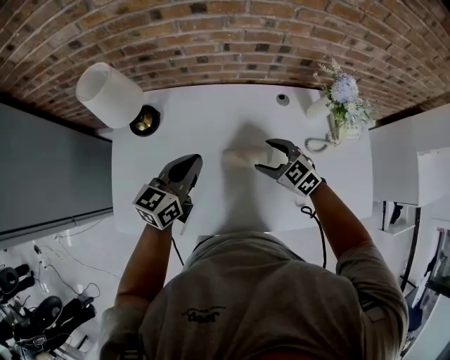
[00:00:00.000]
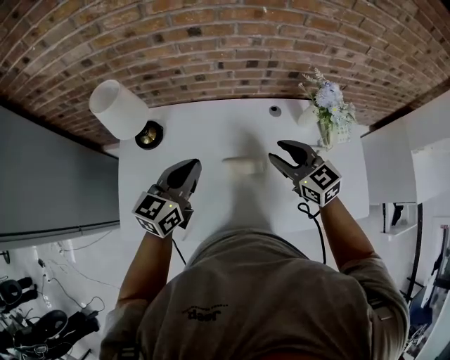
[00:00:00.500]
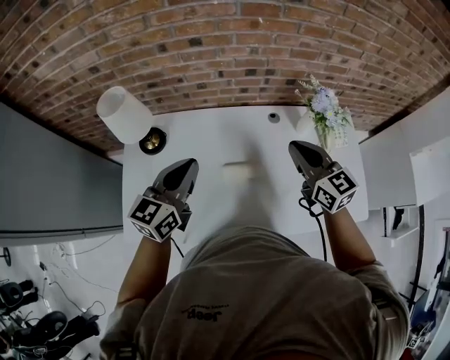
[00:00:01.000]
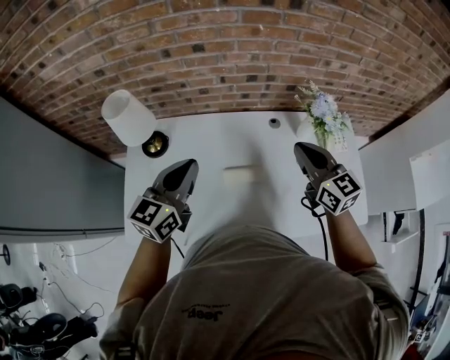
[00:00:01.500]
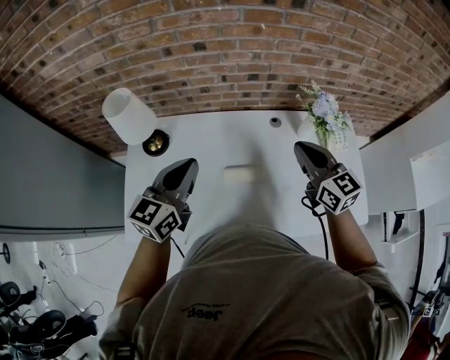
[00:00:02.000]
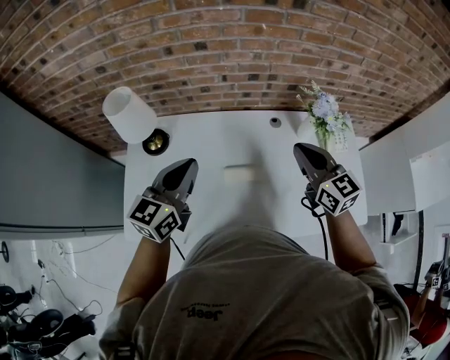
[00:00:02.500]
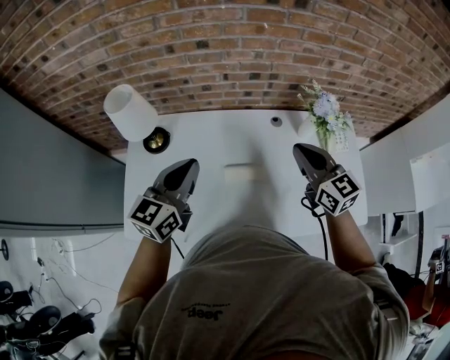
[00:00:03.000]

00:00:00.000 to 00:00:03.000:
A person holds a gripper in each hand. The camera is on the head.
00:00:00.000 to 00:00:01.500: The right gripper moves upward, roughly 25 cm, points its fingers some 30 degrees further upward, and closes; the left gripper heads upward, covering about 15 cm.
00:00:01.500 to 00:00:03.000: Neither gripper changes place.

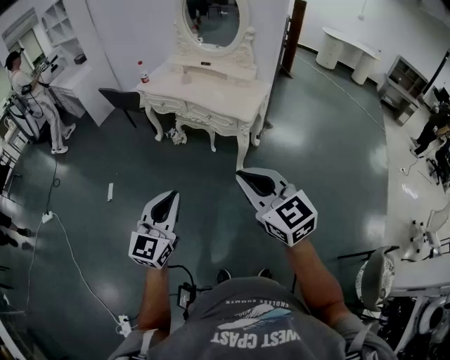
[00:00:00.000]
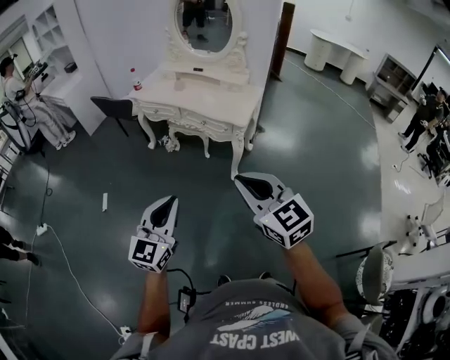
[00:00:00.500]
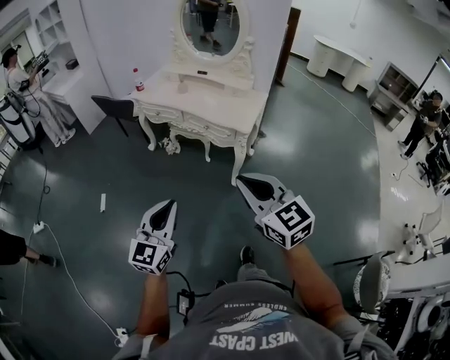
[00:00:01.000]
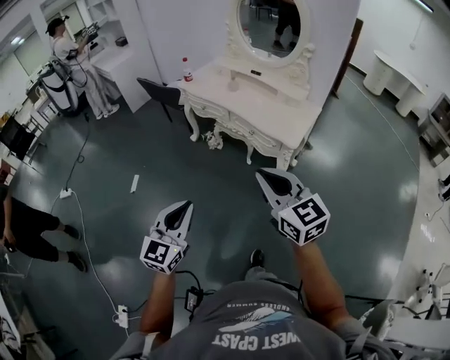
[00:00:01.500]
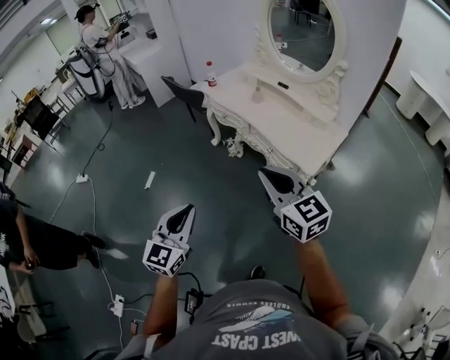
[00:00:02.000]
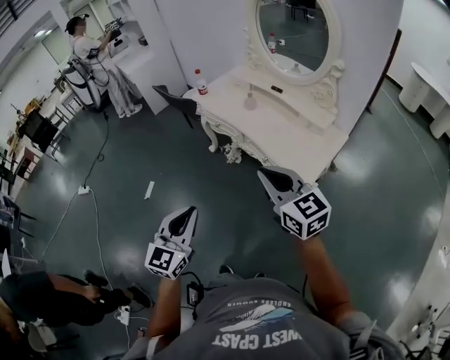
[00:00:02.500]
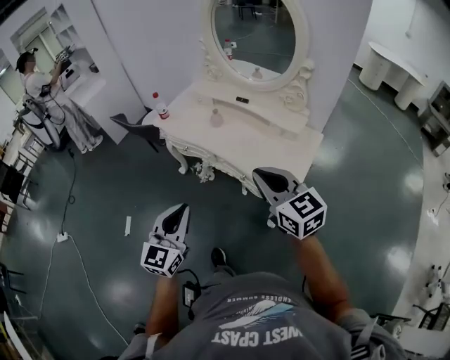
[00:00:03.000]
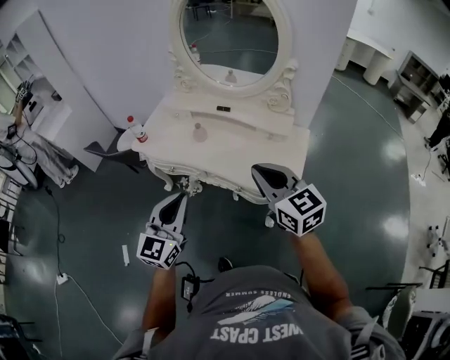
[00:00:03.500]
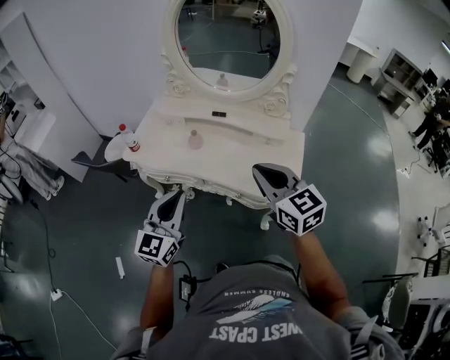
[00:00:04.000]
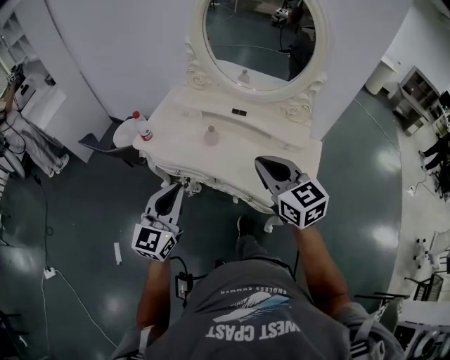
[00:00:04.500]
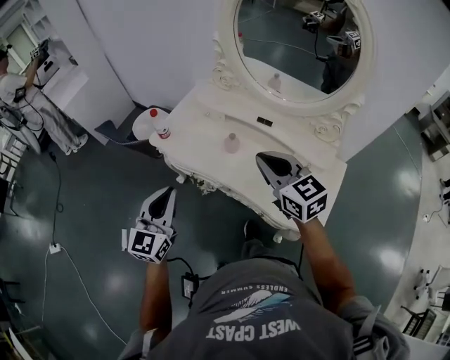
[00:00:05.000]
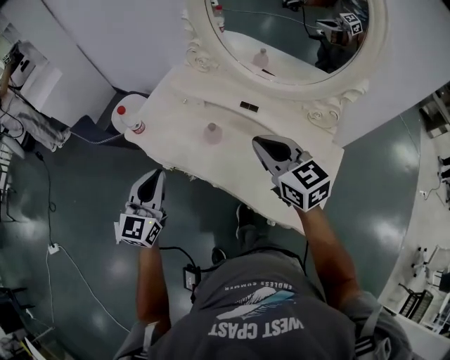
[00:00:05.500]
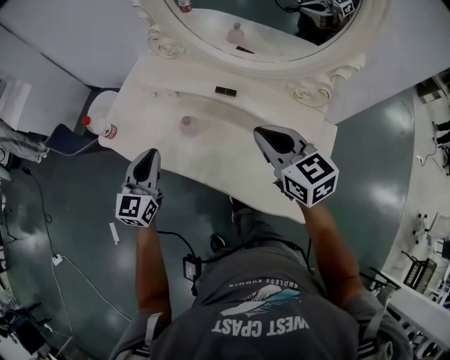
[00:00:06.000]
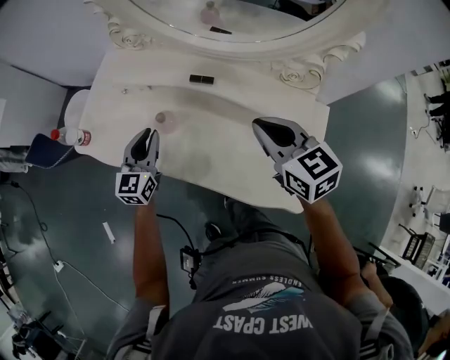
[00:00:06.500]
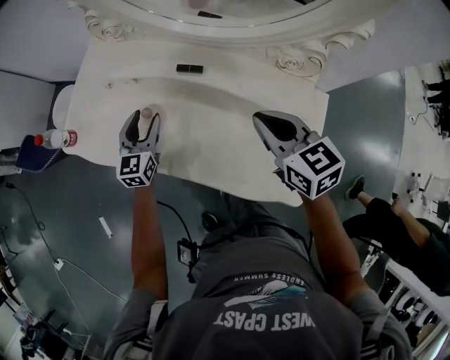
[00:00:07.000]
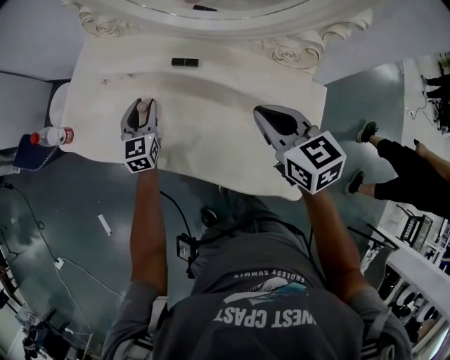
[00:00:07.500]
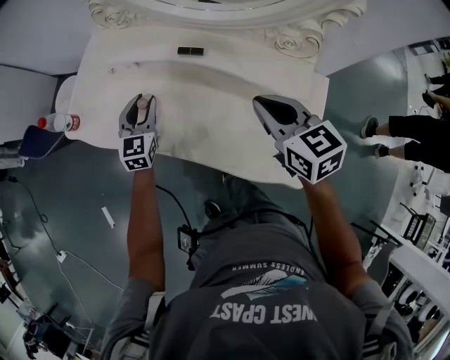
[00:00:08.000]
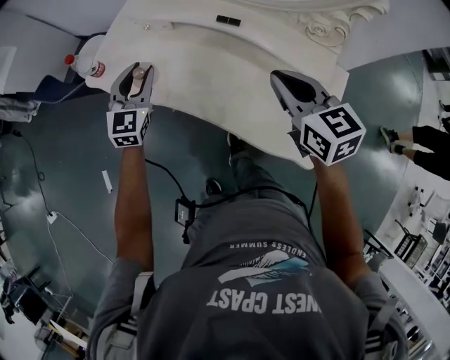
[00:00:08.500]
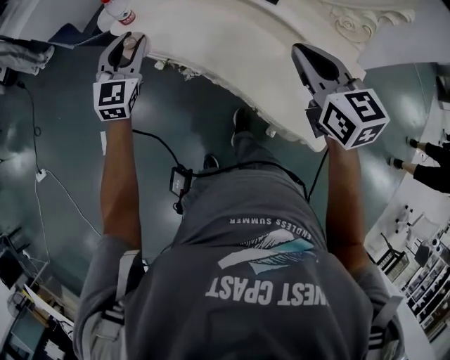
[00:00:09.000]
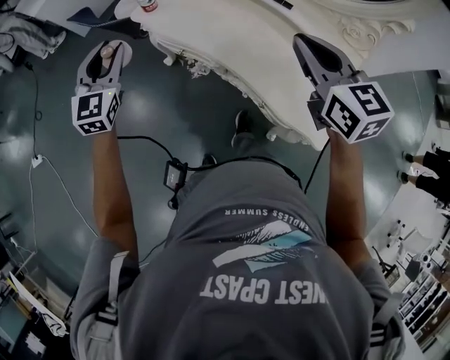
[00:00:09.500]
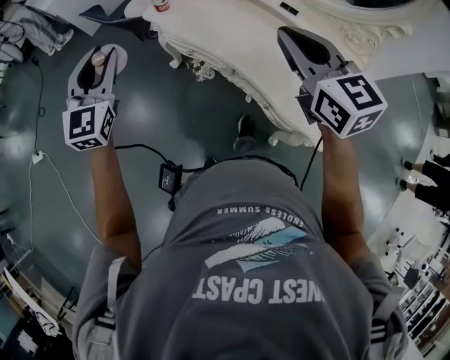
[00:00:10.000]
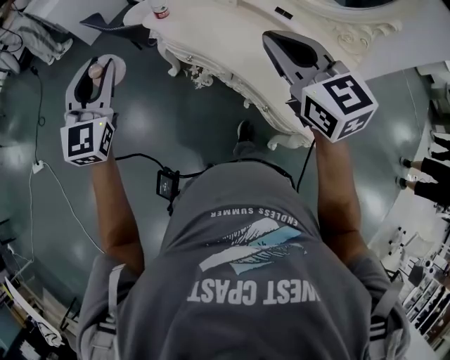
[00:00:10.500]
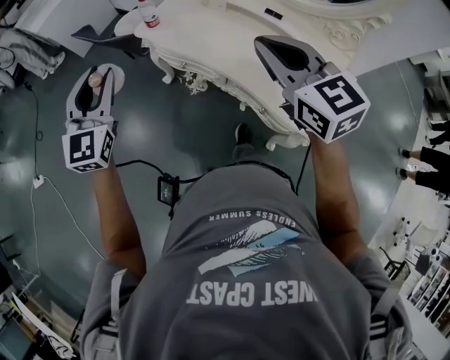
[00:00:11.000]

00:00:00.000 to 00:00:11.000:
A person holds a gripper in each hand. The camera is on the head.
00:00:00.000 to 00:00:02.000: The left gripper heads forward, covering about 20 cm, and swivels about 20 degrees. Meanwhile the right gripper heads forward, covering about 30 cm.
00:00:02.000 to 00:00:03.500: The left gripper moves roughly 40 cm, and turns by roughly 30 degrees. Meanwhile the right gripper shifts by about 30 cm, and changes its angle by approximately 30 degrees.
00:00:03.500 to 00:00:05.500: Both grippers move forward, some 25 cm.
00:00:05.500 to 00:00:07.500: The right gripper heads to the right and downward, covering some 20 cm, and rotates about 20 degrees. Meanwhile the left gripper heads downward, forward and to the right, covering about 35 cm, and opens.
00:00:07.500 to 00:00:09.000: The right gripper is displaced to the left, upward and backward by some 15 cm. Meanwhile the left gripper travels to the left, upward and backward by roughly 30 cm.
00:00:09.000 to 00:00:11.000: The right gripper heads to the left and upward, covering some 20 cm, while the left gripper heads to the left, backward and upward, covering roughly 25 cm.

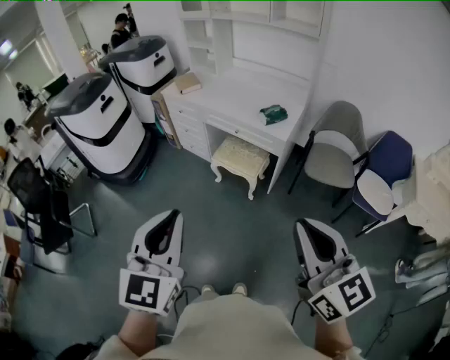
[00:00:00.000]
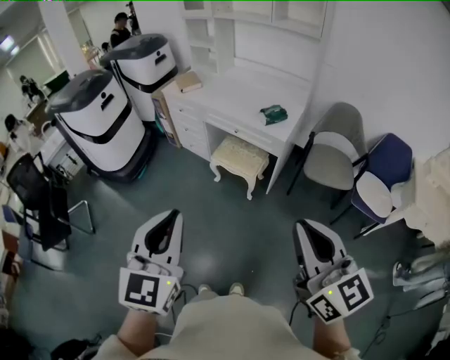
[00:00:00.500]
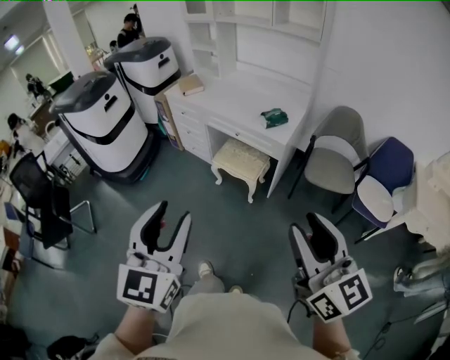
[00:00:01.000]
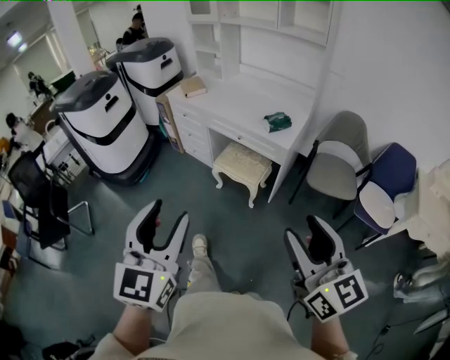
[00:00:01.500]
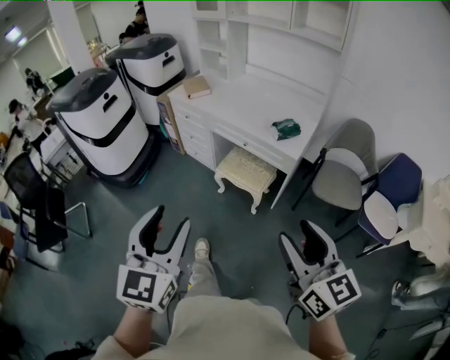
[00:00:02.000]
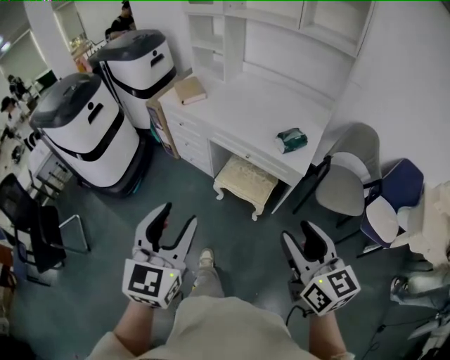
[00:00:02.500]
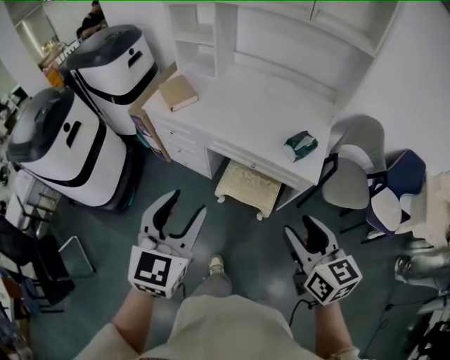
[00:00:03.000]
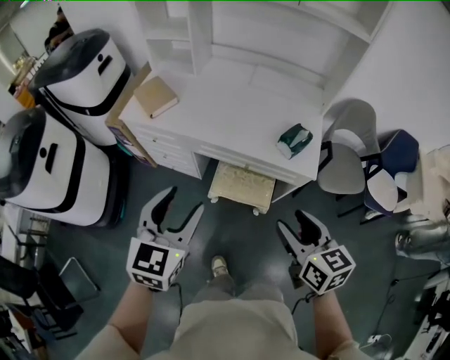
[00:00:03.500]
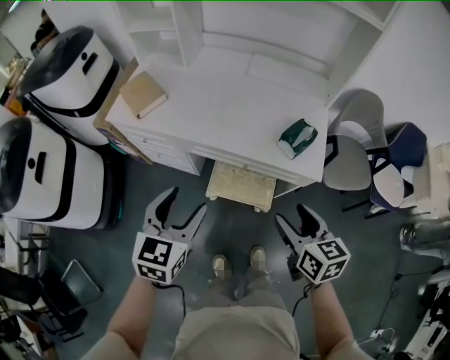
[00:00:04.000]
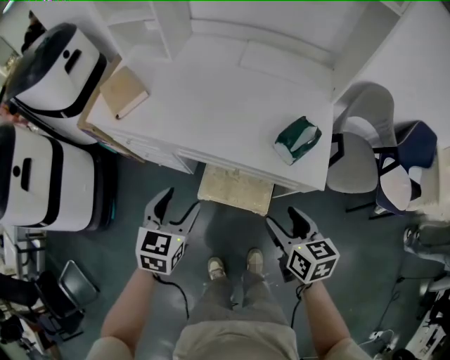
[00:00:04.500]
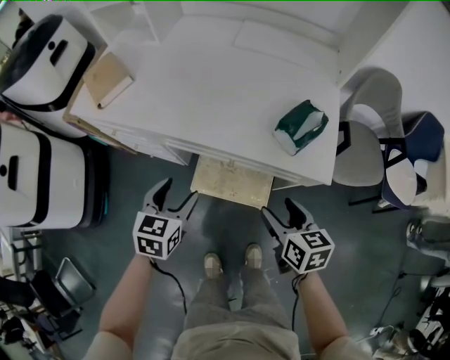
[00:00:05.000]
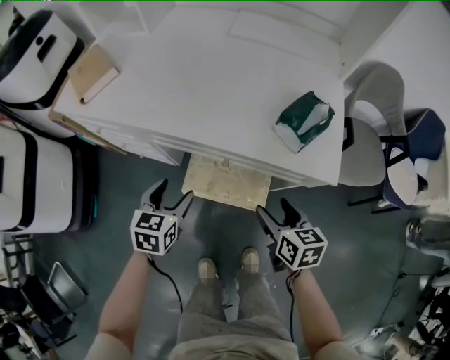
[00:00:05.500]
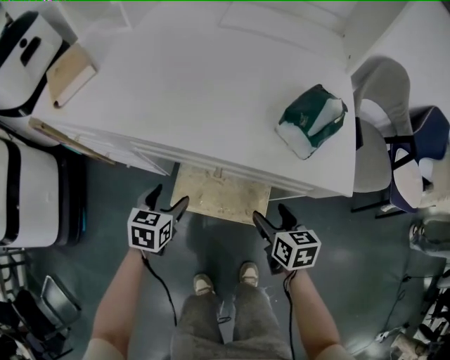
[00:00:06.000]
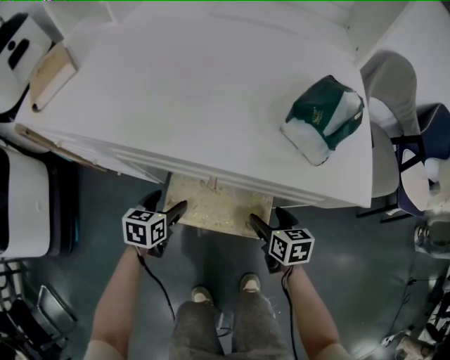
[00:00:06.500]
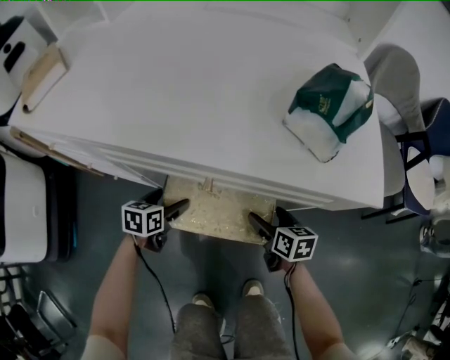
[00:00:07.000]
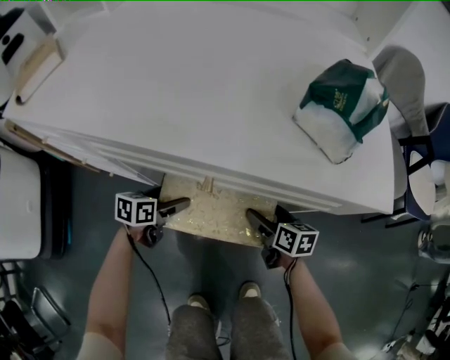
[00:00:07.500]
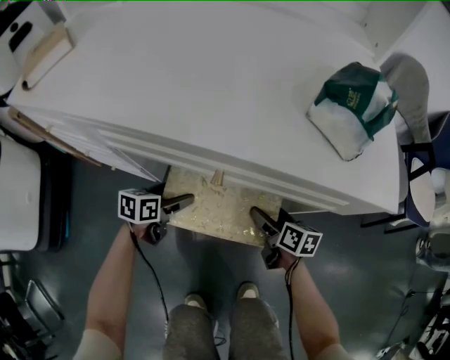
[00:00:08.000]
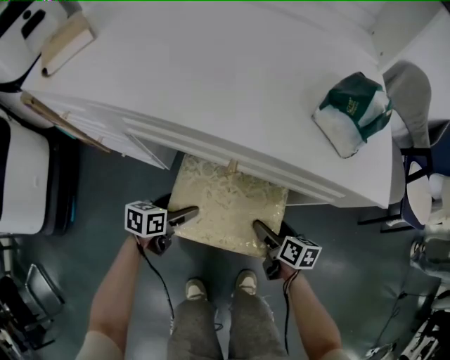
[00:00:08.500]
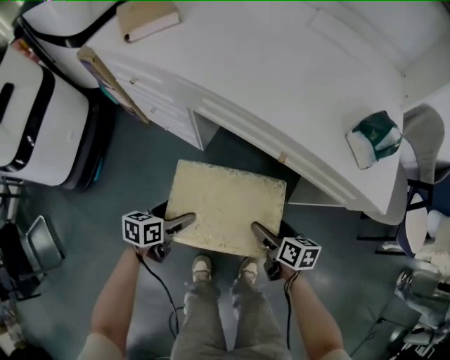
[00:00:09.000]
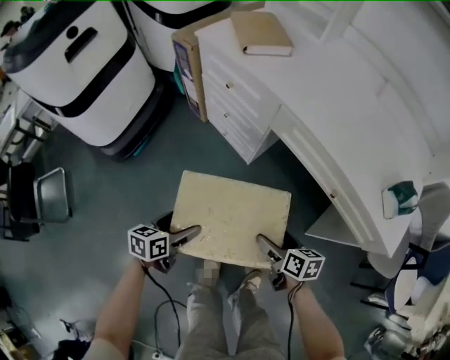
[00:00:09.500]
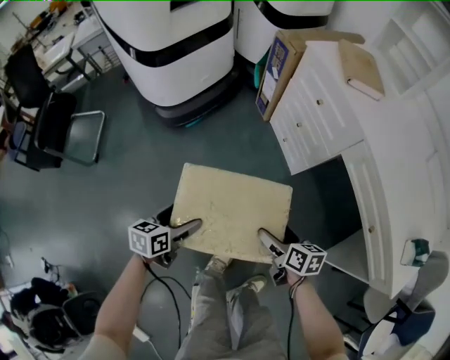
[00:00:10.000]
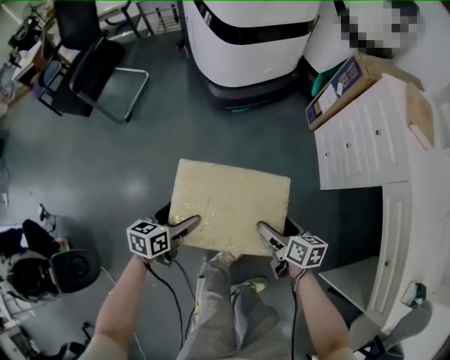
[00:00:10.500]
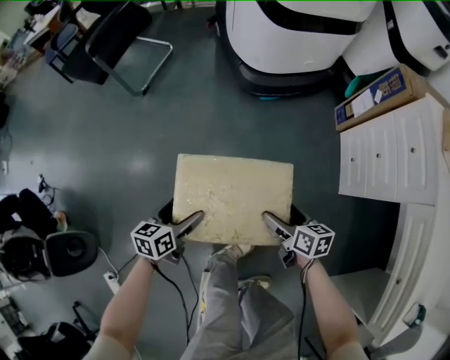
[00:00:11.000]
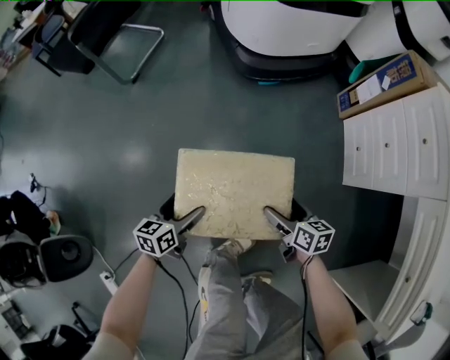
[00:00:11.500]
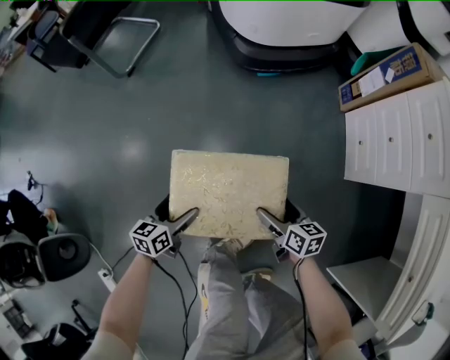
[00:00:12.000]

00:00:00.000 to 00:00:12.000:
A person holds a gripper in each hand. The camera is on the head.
00:00:00.000 to 00:00:02.000: The left gripper is displaced forward by approximately 10 cm, and opens its fingers, while the right gripper shifts roughly 15 cm forward and downward, and opens up.
00:00:02.000 to 00:00:04.000: Both grippers are carried forward, some 50 cm. The right gripper travels downward by some 20 cm, and turns by about 40 degrees; the left gripper changes its angle by some 30 degrees.
00:00:04.000 to 00:00:06.000: Both grippers travel together downward, about 40 cm. The left gripper changes its angle by some 20 degrees.
00:00:06.000 to 00:00:08.000: Both grippers travel together downward, roughly 20 cm. The left gripper changes its angle by about 30 degrees. Meanwhile the right gripper swivels approximately 20 degrees.
00:00:08.000 to 00:00:10.000: Both grippers are carried roughly 50 cm. The left gripper swivels about 60 degrees. The right gripper rotates some 60 degrees.
00:00:10.000 to 00:00:12.000: The right gripper shifts by about 30 cm, and changes its angle by some 30 degrees, while the left gripper changes place by approximately 35 cm, and swivels about 30 degrees.
